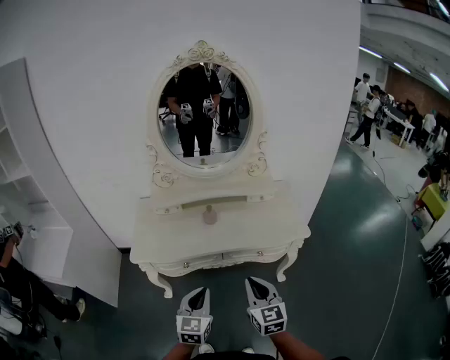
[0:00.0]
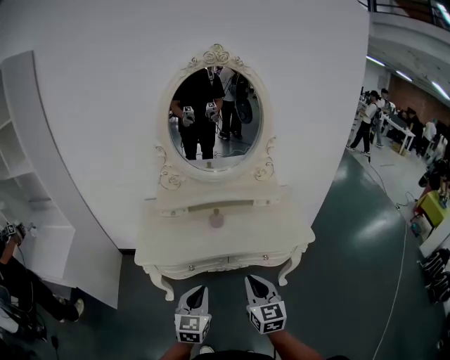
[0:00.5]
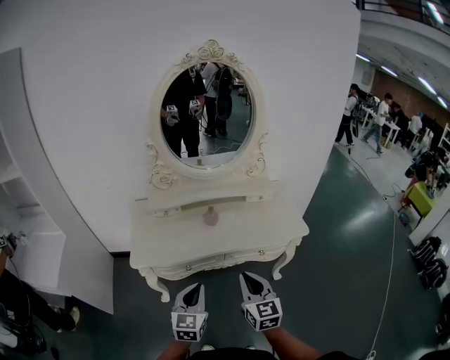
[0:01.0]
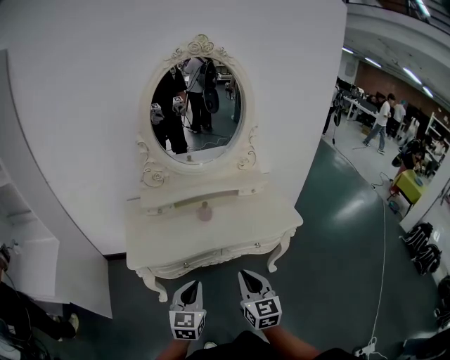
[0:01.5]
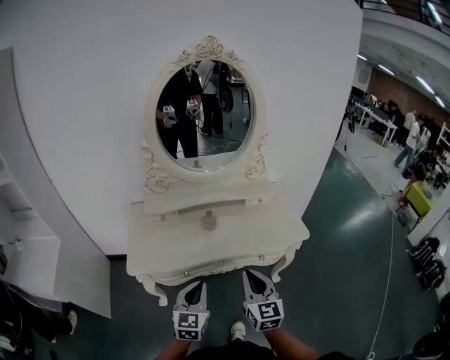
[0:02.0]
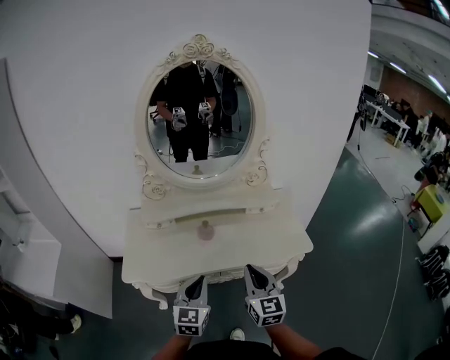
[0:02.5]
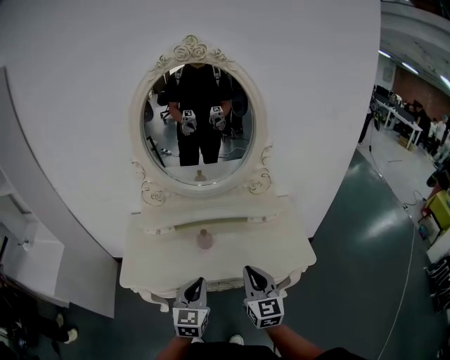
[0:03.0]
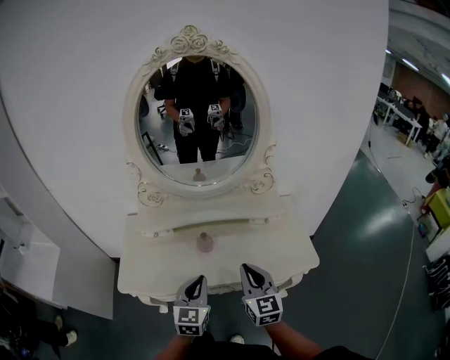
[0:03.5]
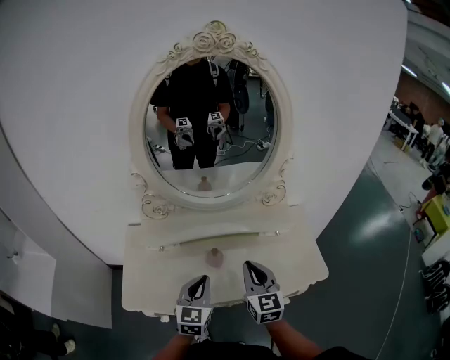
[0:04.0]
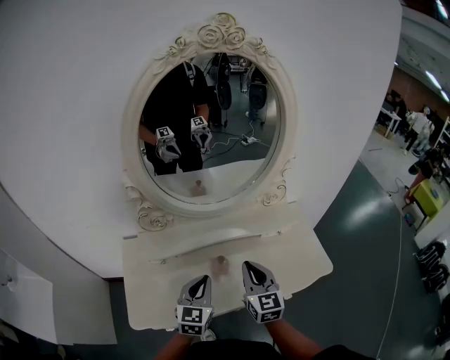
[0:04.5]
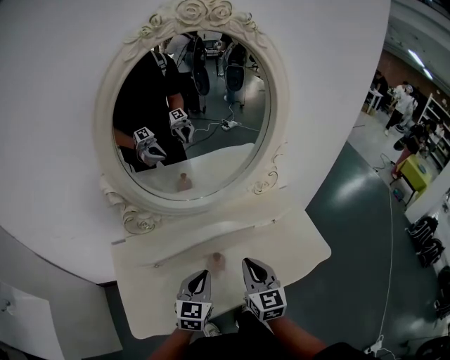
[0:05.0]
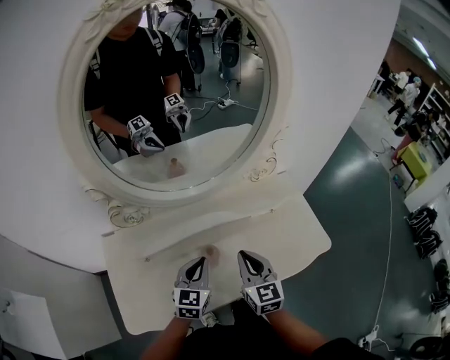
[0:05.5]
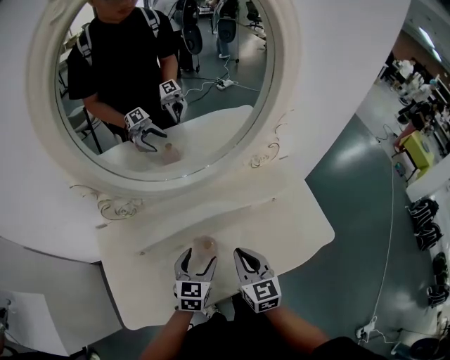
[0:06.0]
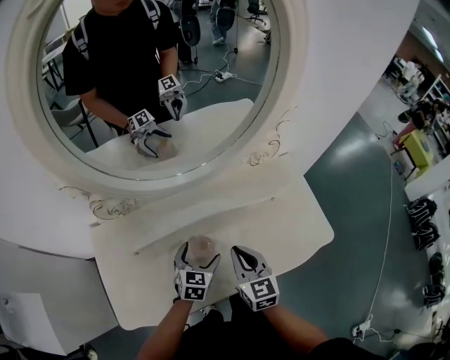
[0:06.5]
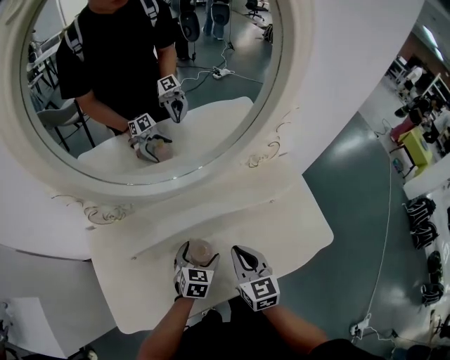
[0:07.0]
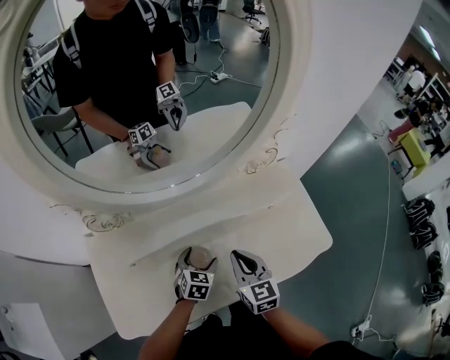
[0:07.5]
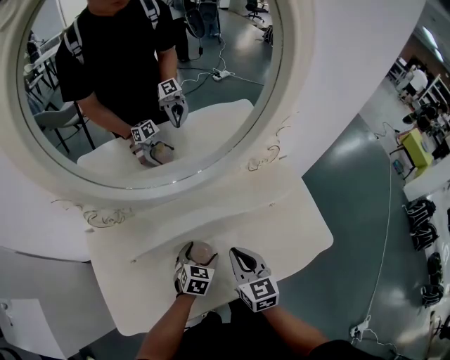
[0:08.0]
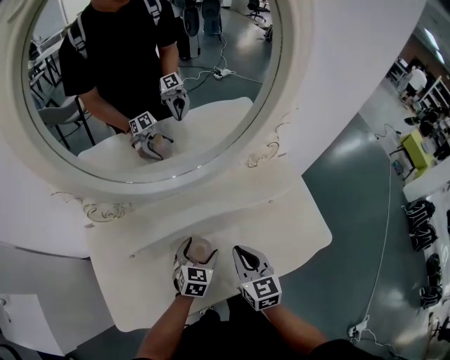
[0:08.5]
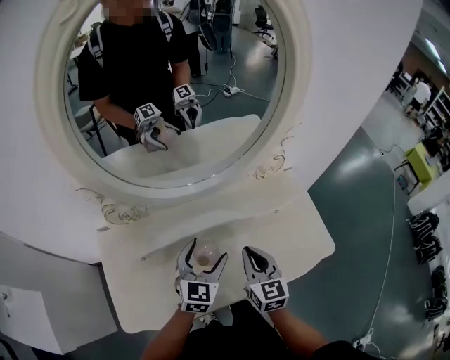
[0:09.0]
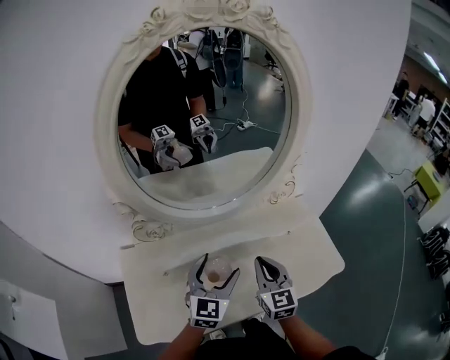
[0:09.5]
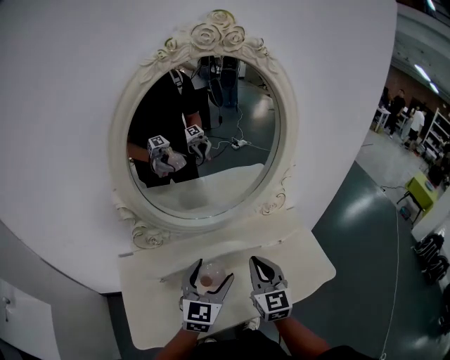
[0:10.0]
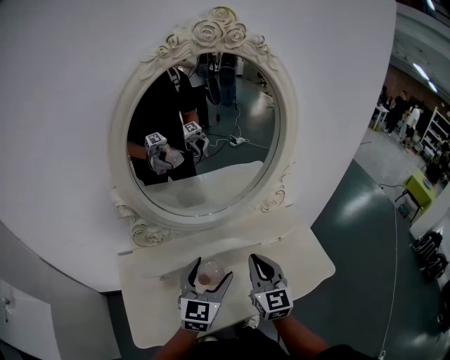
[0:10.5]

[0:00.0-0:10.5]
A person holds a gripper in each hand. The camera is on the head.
0:00.0 to 0:02.0: The left gripper changes place by some 5 cm, while the right gripper moves approximately 5 cm.
0:02.0 to 0:04.0: The two grippers go some 20 cm forward.
0:04.0 to 0:06.5: The right gripper moves downward and forward, about 15 cm. The left gripper is displaced downward and forward by approximately 20 cm, changes its angle by about 30 degrees, and opens its fingers.
0:06.5 to 0:08.5: There are only small adjustments of the grippers.
0:08.5 to 0:10.5: The right gripper heads upward, covering roughly 15 cm, and swivels approximately 20 degrees; the left gripper goes about 25 cm upward, and rotates some 30 degrees.

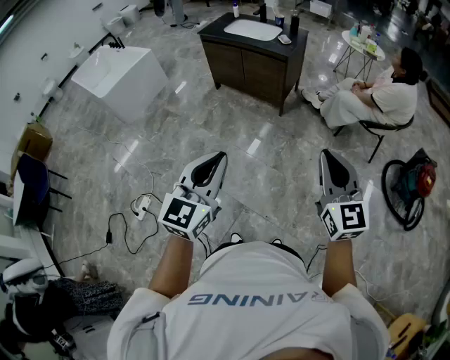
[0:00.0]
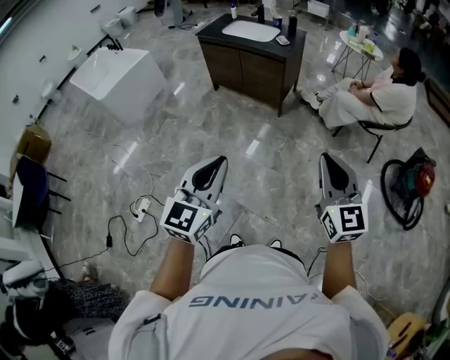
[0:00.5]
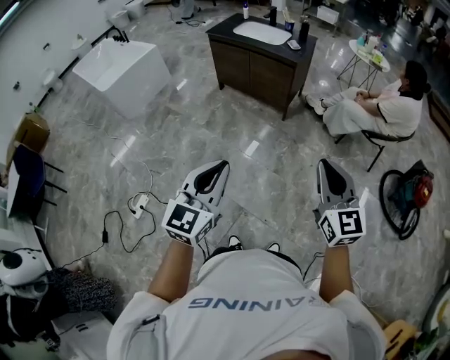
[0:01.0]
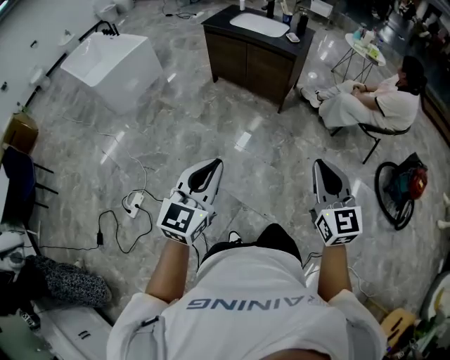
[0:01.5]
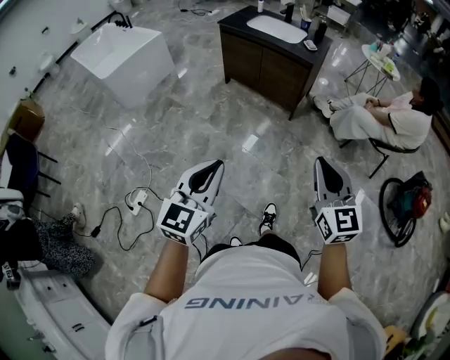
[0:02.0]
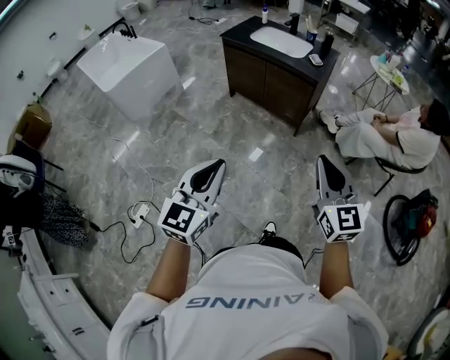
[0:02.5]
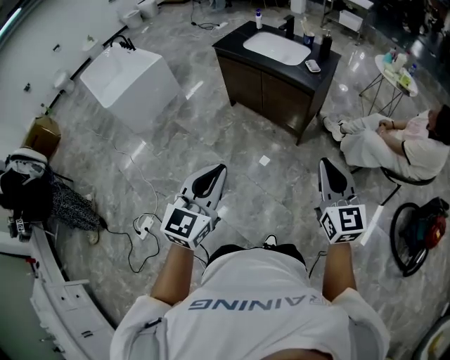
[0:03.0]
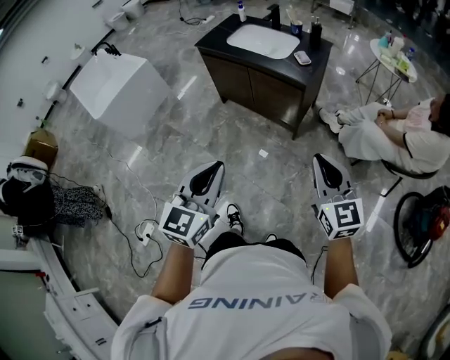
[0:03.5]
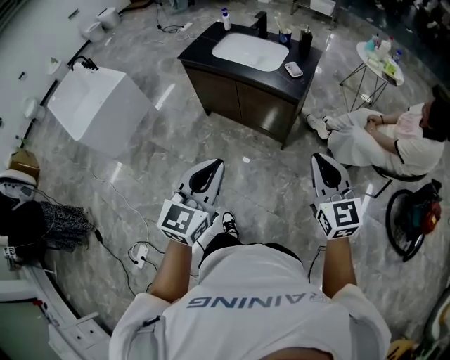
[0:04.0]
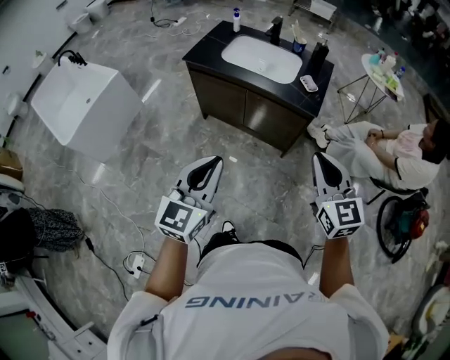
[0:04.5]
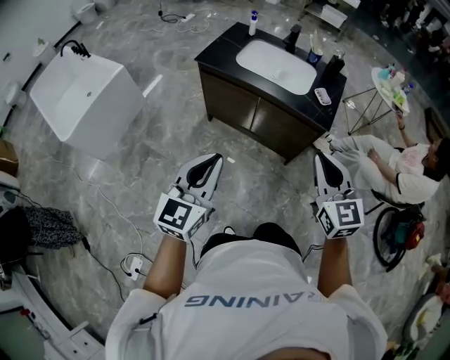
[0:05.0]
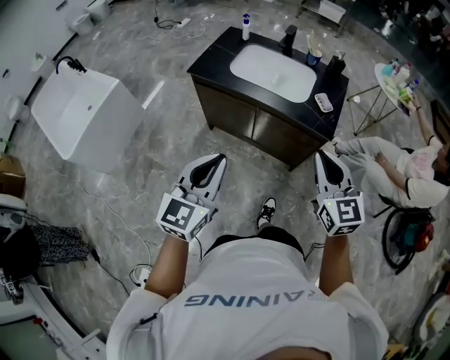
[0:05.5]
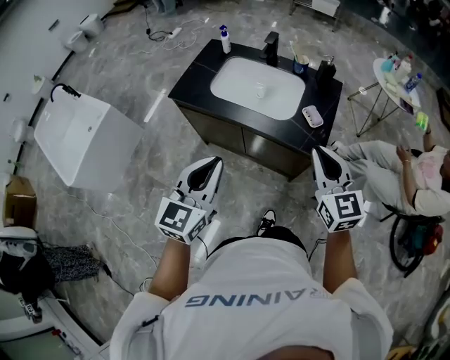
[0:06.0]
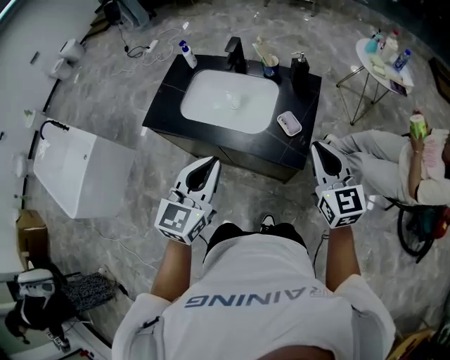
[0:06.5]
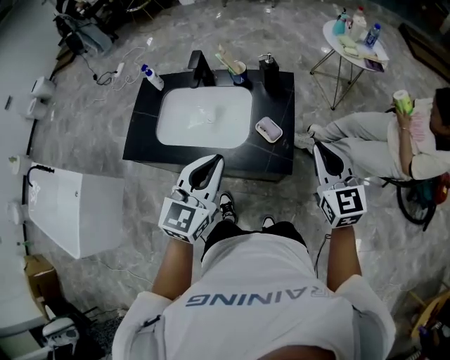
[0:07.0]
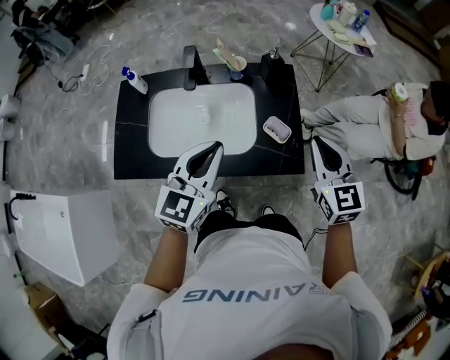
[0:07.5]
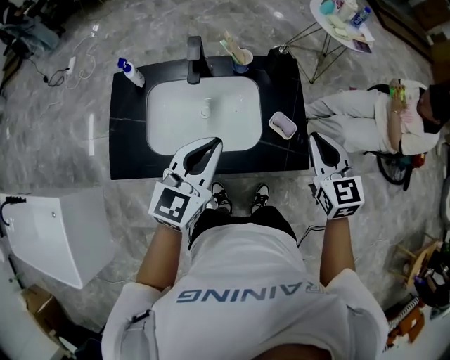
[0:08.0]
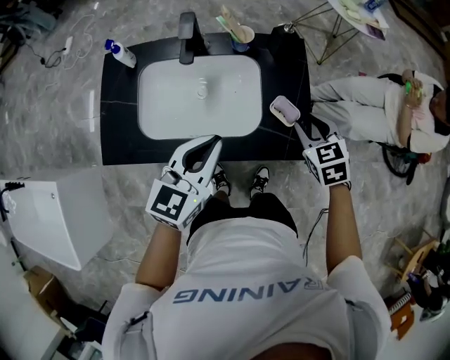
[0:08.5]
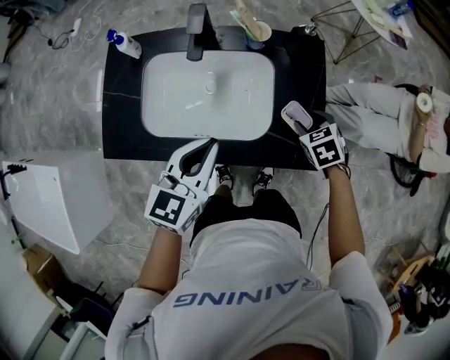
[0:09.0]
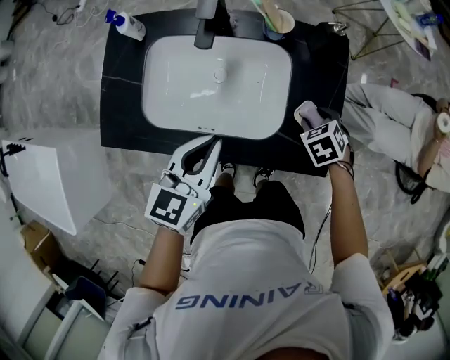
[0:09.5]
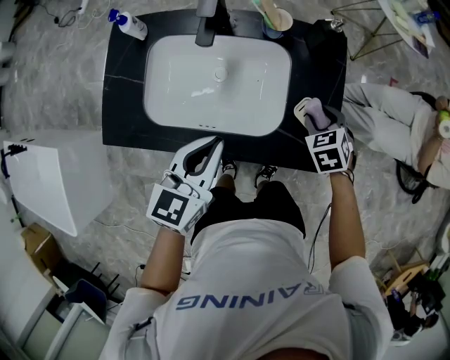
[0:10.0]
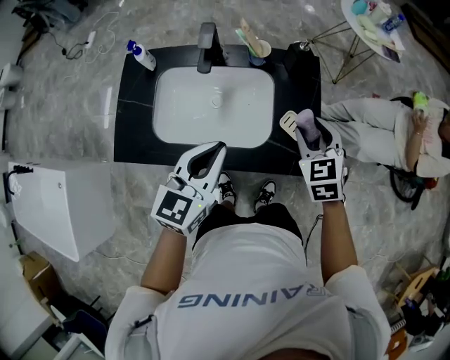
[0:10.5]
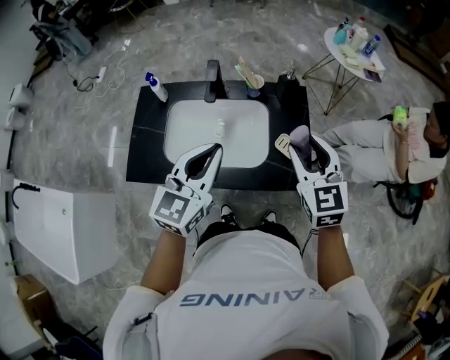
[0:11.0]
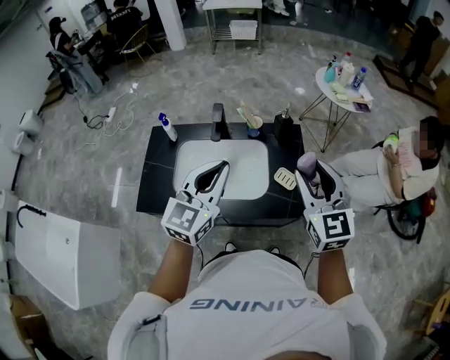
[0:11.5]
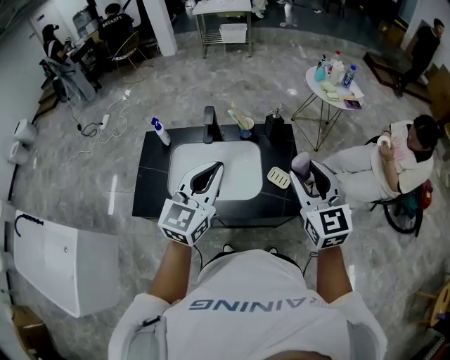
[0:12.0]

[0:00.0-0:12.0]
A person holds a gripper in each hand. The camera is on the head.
0:00.0 to 0:02.0: The left gripper goes about 15 cm to the left and downward. Meanwhile the right gripper moves to the left and forward, about 15 cm.
0:02.0 to 0:04.0: The grippers both shift forward by approximately 40 cm.
0:04.0 to 0:06.0: The two grippers go roughly 35 cm forward.
0:06.0 to 0:08.0: The right gripper ends up some 20 cm from where it was, and swivels roughly 30 degrees; the left gripper changes place by some 35 cm, and turns by approximately 30 degrees.
0:08.0 to 0:10.0: The left gripper heads downward, covering approximately 10 cm, and rotates approximately 20 degrees; the right gripper moves downward, some 25 cm, points its fingers approximately 40 degrees further downward, and opens its fingers.
0:10.0 to 0:12.0: The right gripper shifts approximately 35 cm upward, and tilts its fingers roughly 50 degrees upward. Meanwhile the left gripper is displaced upward by approximately 20 cm, and turns by about 30 degrees.

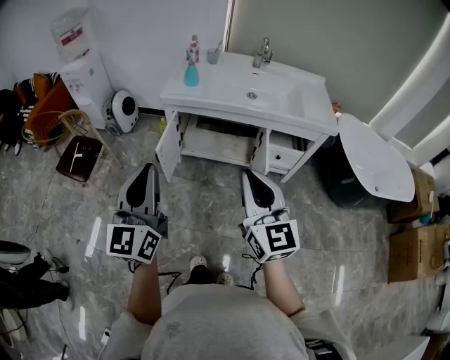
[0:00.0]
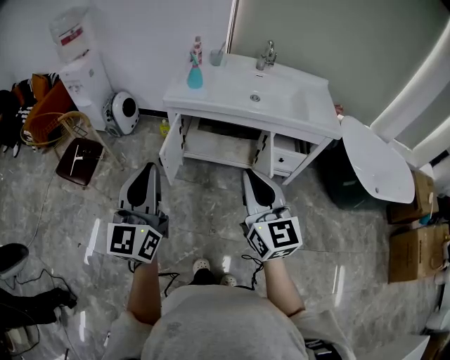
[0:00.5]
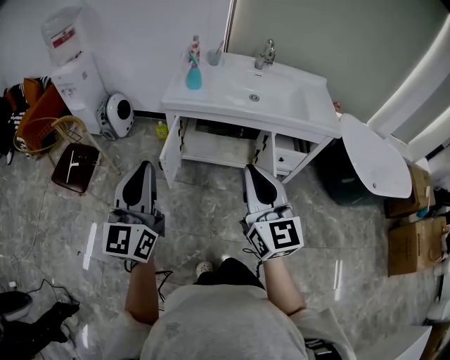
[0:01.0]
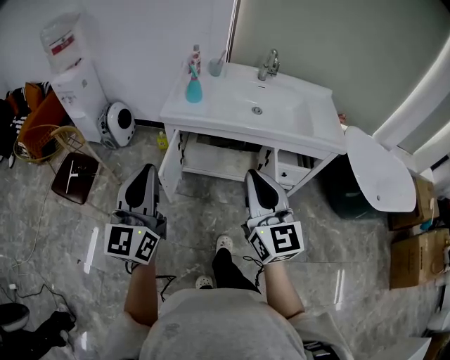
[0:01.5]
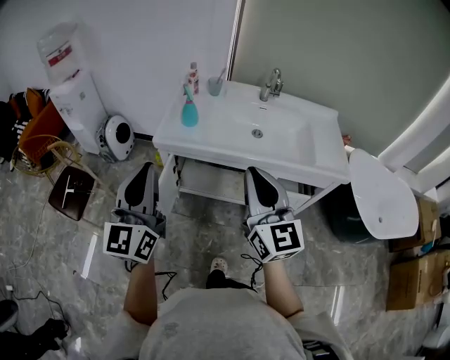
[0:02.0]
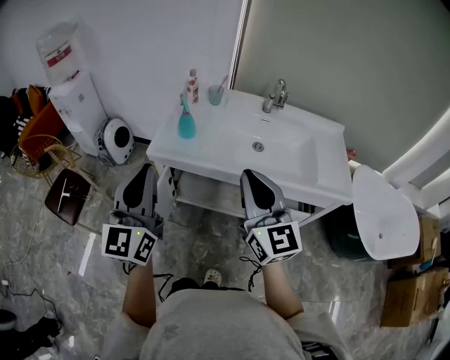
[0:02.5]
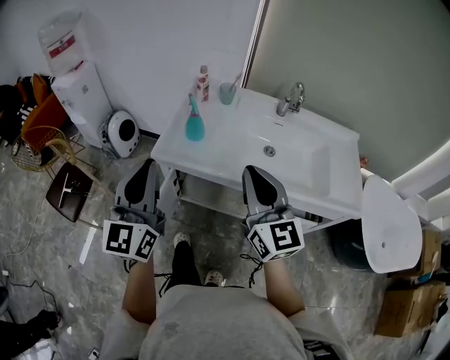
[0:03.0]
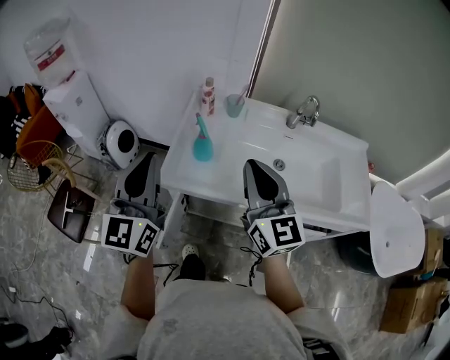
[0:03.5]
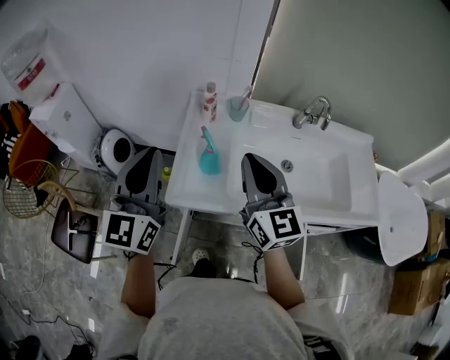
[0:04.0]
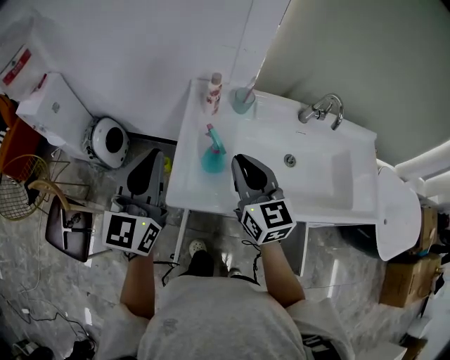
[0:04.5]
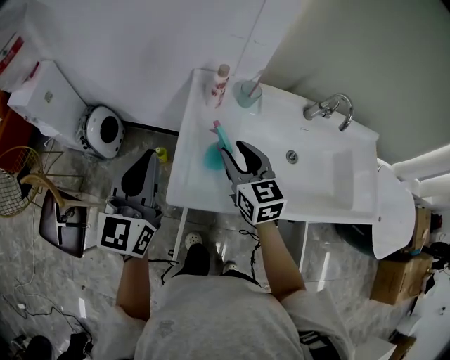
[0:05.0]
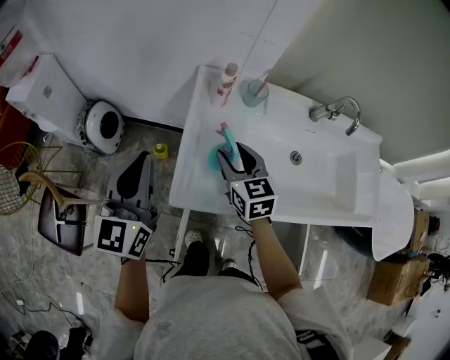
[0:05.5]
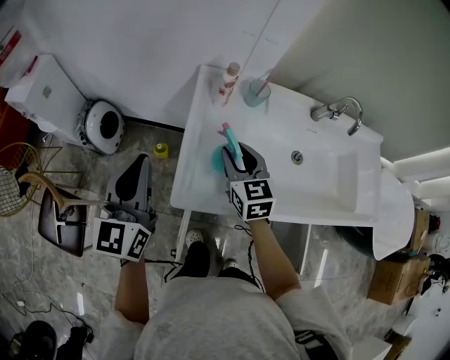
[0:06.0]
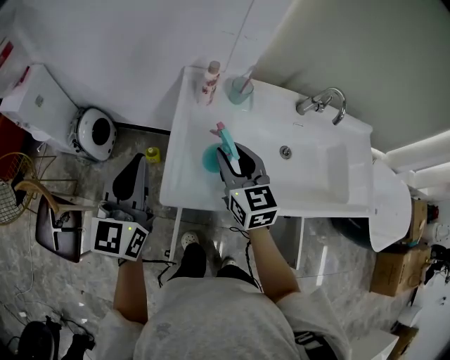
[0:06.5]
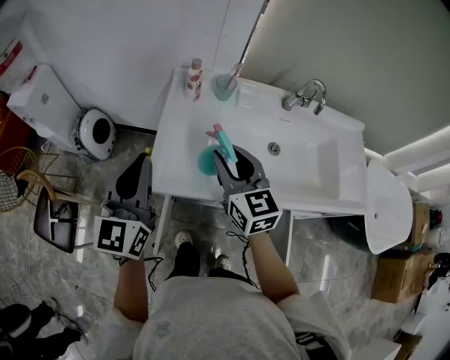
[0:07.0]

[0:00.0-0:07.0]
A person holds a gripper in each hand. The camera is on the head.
0:00.0 to 0:02.0: The grippers both shift forward by approximately 25 cm.
0:02.0 to 0:03.5: Both grippers travel together forward, approximately 25 cm.
0:03.5 to 0:05.0: Both grippers travel together forward, downward and to the left, some 25 cm. The right gripper changes its angle by some 30 degrees, and opens its fingers.
0:05.0 to 0:07.0: The right gripper is displaced backward by approximately 10 cm, while the left gripper travels backward and to the right by roughly 10 cm.
